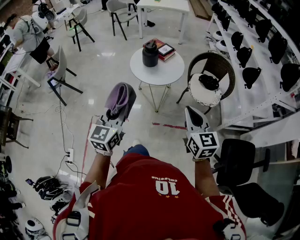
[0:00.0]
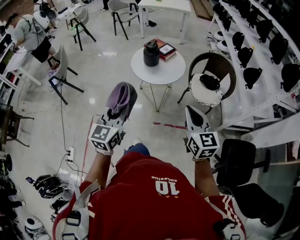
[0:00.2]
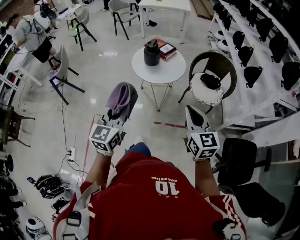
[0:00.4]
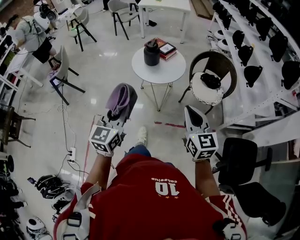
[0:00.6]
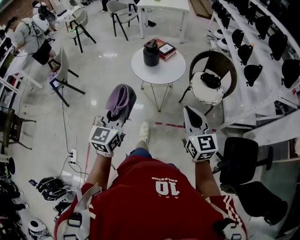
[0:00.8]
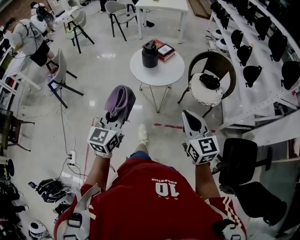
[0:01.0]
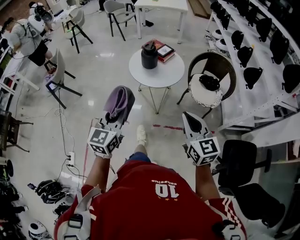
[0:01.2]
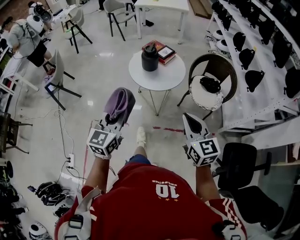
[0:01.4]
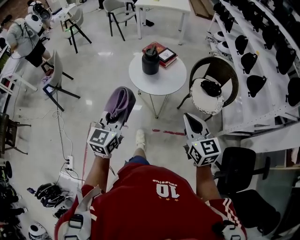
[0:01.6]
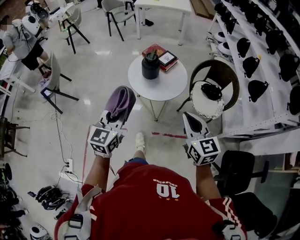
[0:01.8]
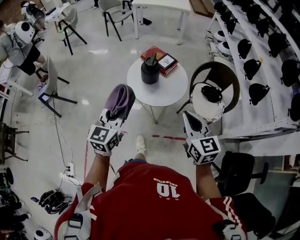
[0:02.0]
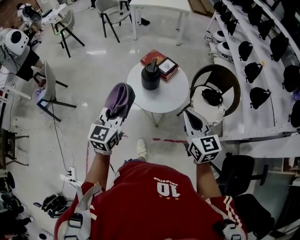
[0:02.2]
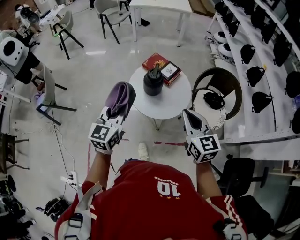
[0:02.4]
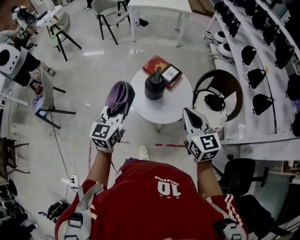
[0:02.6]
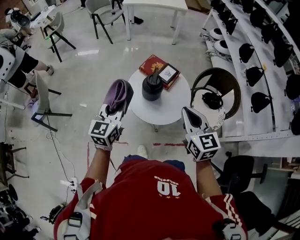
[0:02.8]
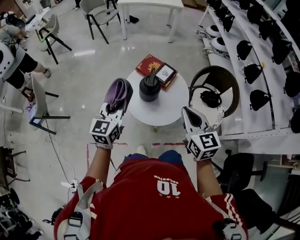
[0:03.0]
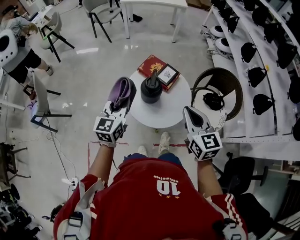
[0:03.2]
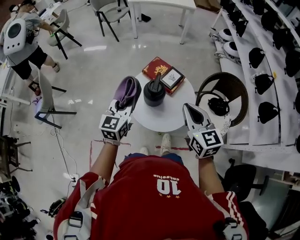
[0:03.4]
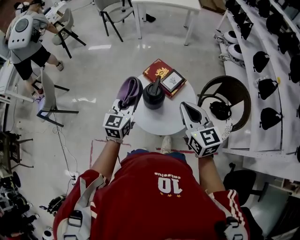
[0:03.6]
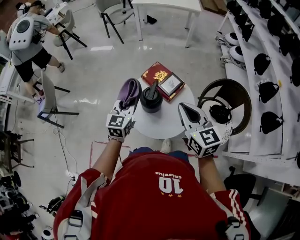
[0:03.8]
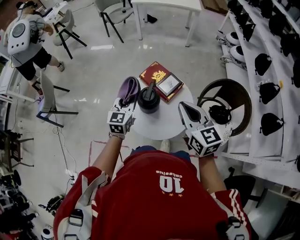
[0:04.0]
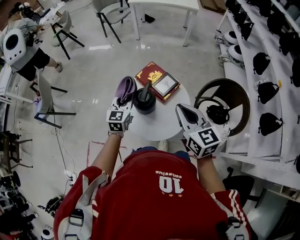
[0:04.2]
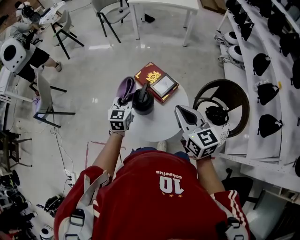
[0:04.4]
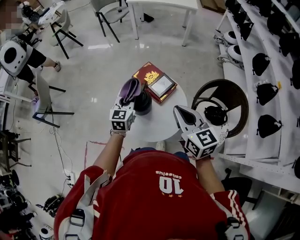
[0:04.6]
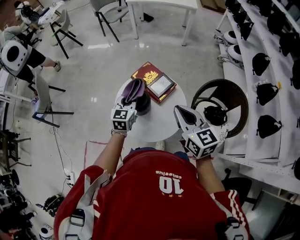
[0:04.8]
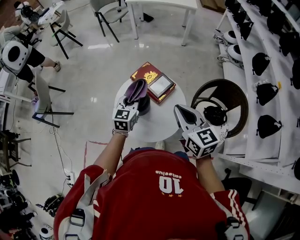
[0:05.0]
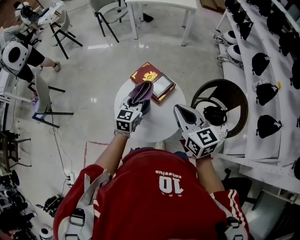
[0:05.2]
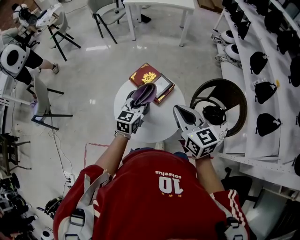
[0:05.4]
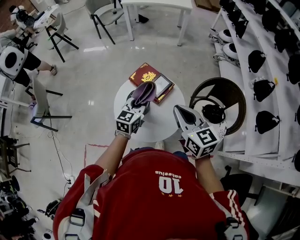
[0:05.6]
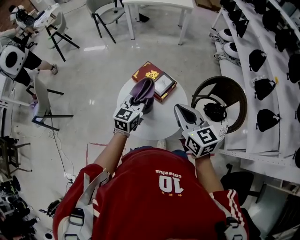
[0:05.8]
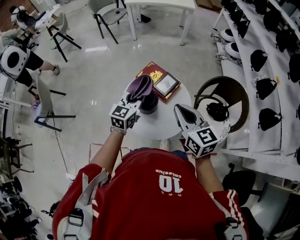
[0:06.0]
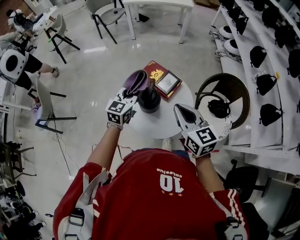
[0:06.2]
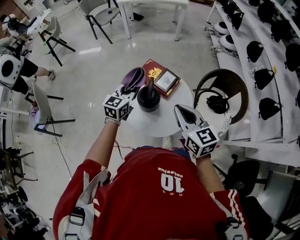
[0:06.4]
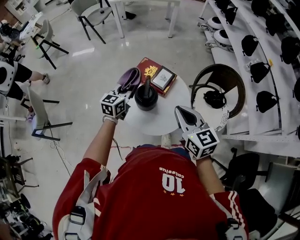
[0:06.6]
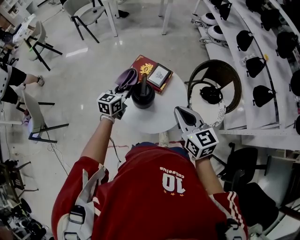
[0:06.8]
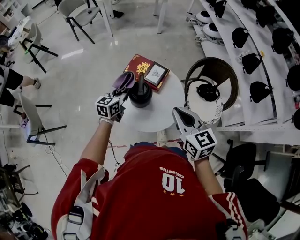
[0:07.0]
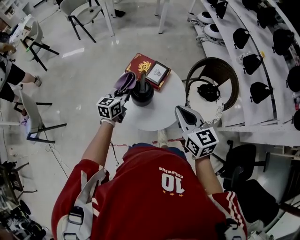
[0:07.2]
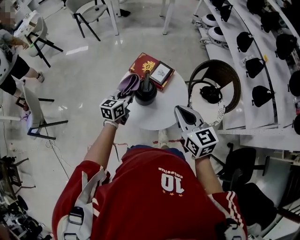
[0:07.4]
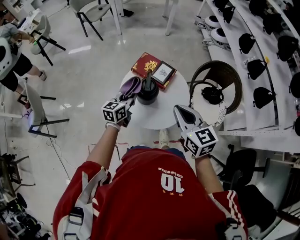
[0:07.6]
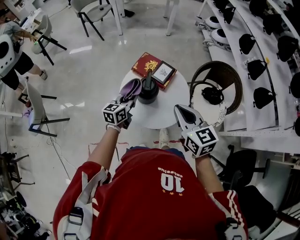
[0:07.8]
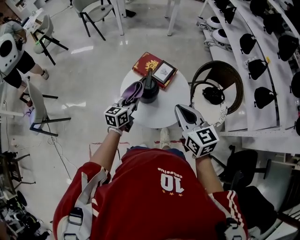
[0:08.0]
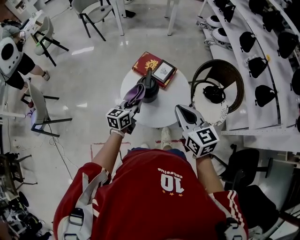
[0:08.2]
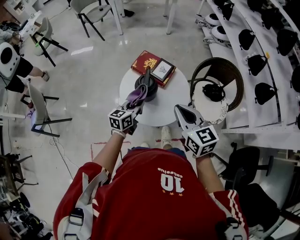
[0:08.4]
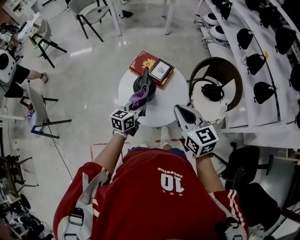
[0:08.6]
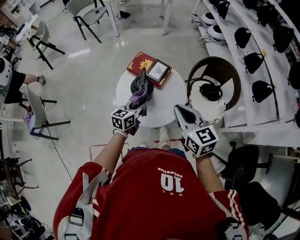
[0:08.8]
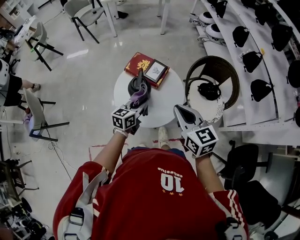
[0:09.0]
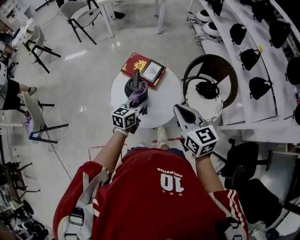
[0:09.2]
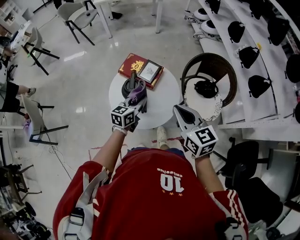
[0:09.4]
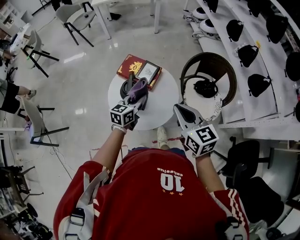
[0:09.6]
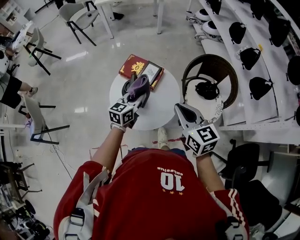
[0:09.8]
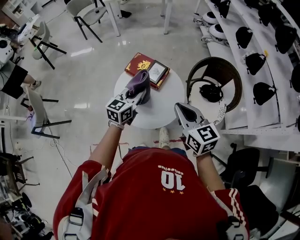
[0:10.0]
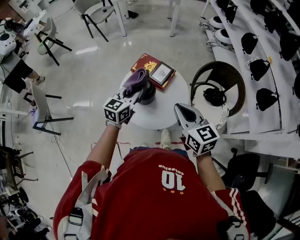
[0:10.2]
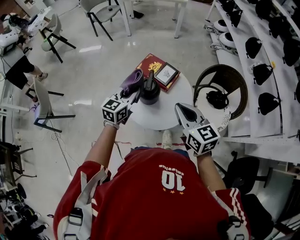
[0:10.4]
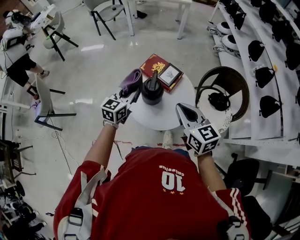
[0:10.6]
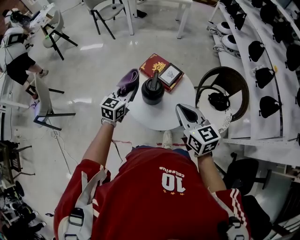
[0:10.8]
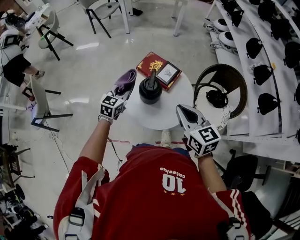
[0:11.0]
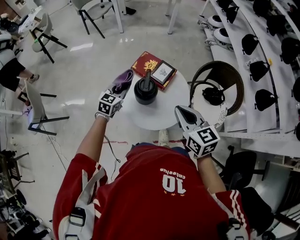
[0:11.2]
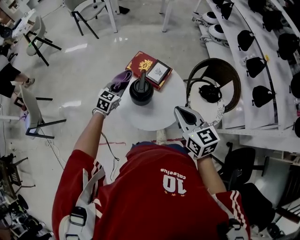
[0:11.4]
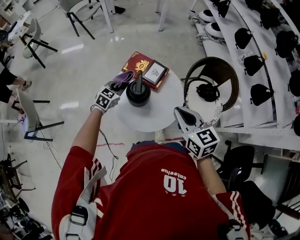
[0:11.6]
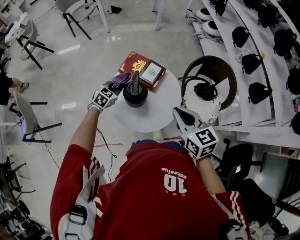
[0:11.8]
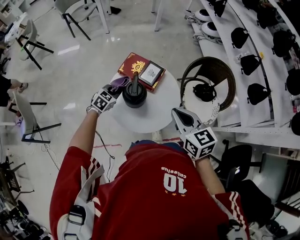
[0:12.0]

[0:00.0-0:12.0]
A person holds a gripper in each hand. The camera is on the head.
0:00.0 to 0:01.6: The grippers both shift forward by approximately 10 cm.
0:01.6 to 0:03.0: Both grippers travel together forward, about 30 cm.
0:03.0 to 0:04.4: The right gripper is displaced forward and to the right by about 15 cm. Meanwhile the left gripper travels forward, downward and to the right by approximately 20 cm.
0:04.4 to 0:06.0: The left gripper heads upward, covering about 5 cm.
0:06.0 to 0:07.6: The right gripper shifts about 5 cm backward. The left gripper shifts about 10 cm downward and to the left, and rotates some 20 degrees.
0:07.6 to 0:09.0: The left gripper moves to the right, some 10 cm.
0:09.0 to 0:10.4: The left gripper moves upward and to the left, roughly 10 cm.
0:10.4 to 0:12.0: The left gripper moves downward and forward, about 20 cm, and swivels about 40 degrees.

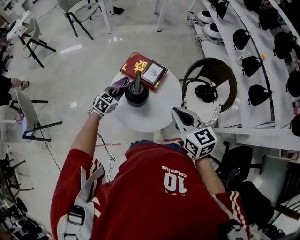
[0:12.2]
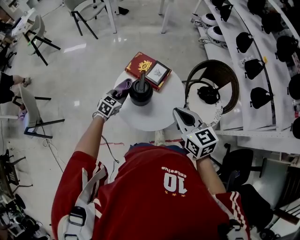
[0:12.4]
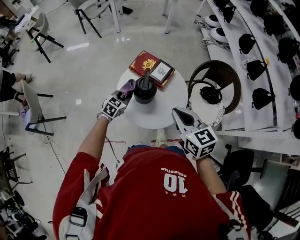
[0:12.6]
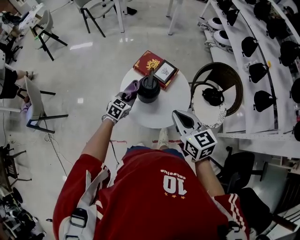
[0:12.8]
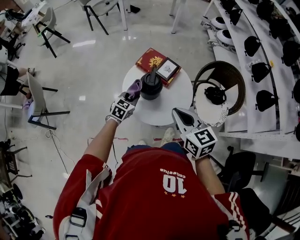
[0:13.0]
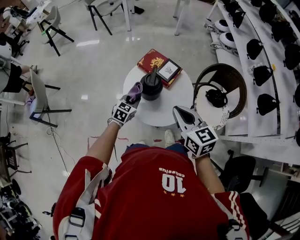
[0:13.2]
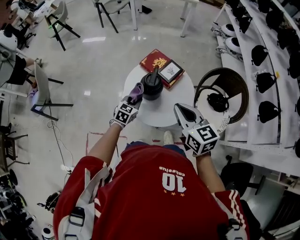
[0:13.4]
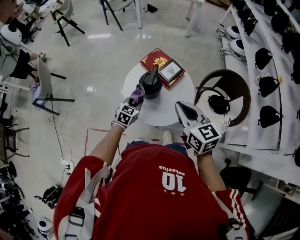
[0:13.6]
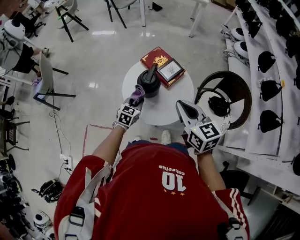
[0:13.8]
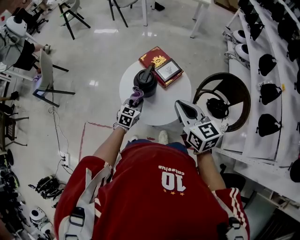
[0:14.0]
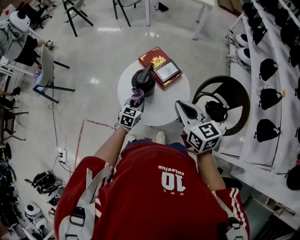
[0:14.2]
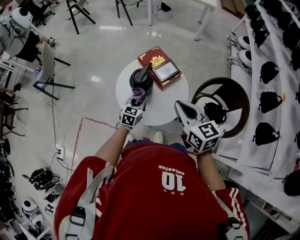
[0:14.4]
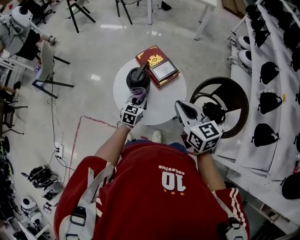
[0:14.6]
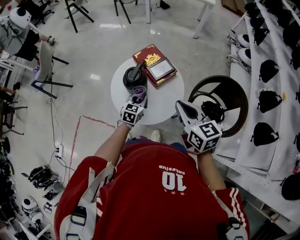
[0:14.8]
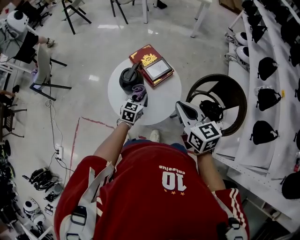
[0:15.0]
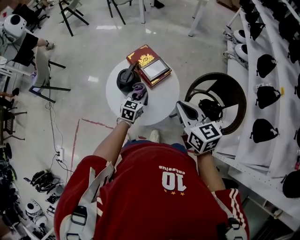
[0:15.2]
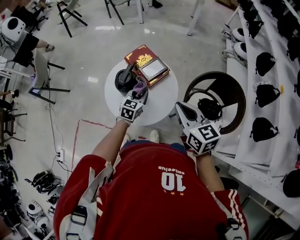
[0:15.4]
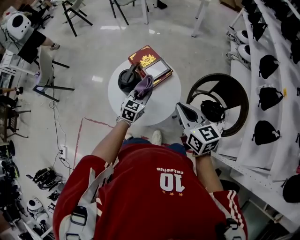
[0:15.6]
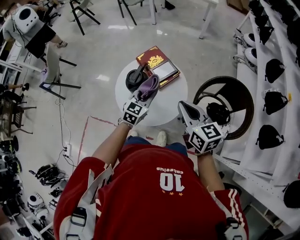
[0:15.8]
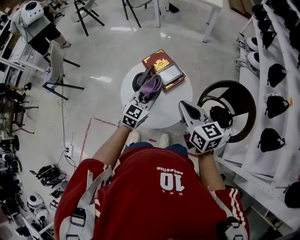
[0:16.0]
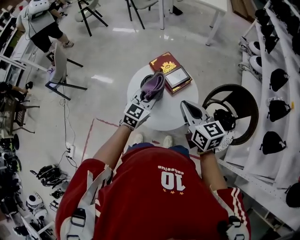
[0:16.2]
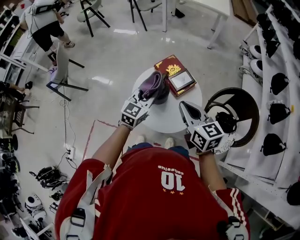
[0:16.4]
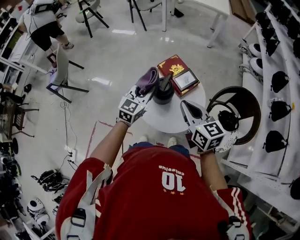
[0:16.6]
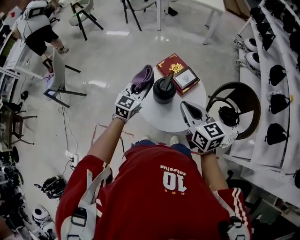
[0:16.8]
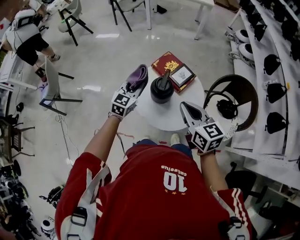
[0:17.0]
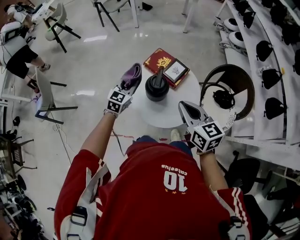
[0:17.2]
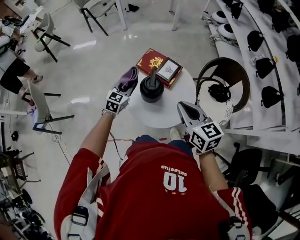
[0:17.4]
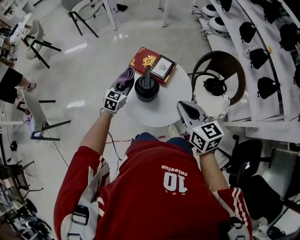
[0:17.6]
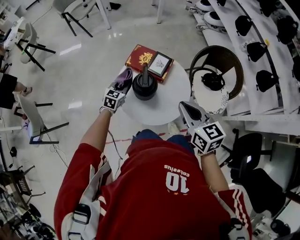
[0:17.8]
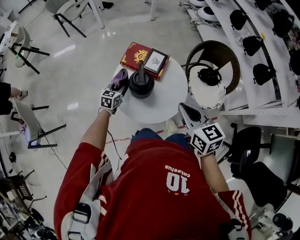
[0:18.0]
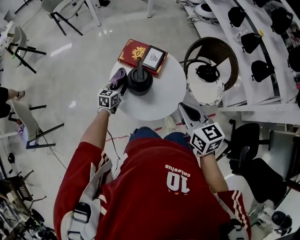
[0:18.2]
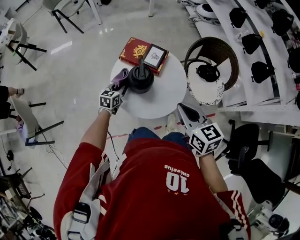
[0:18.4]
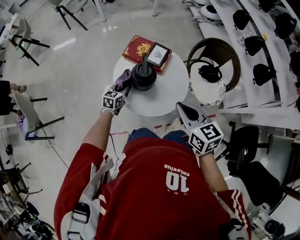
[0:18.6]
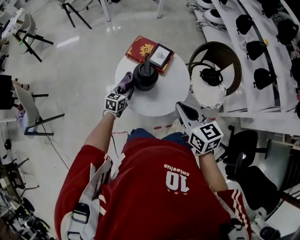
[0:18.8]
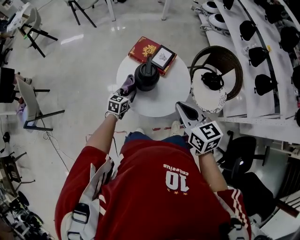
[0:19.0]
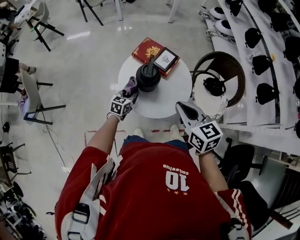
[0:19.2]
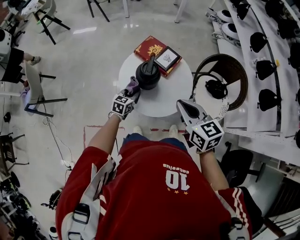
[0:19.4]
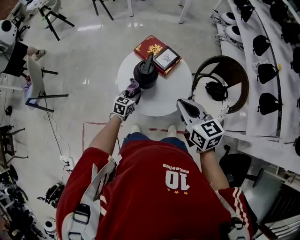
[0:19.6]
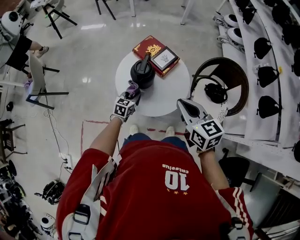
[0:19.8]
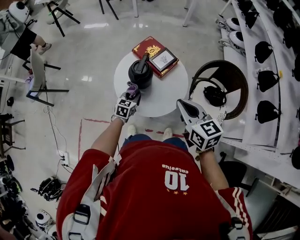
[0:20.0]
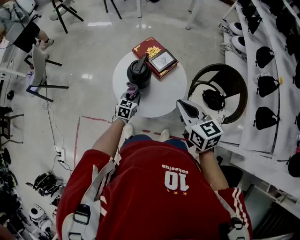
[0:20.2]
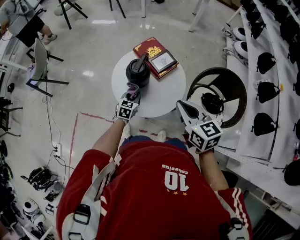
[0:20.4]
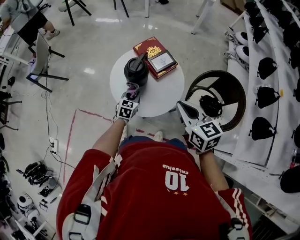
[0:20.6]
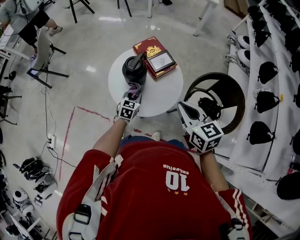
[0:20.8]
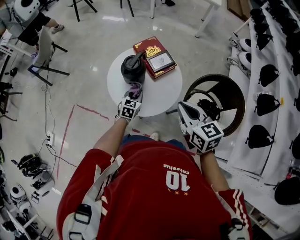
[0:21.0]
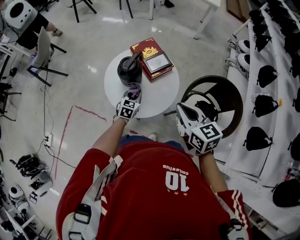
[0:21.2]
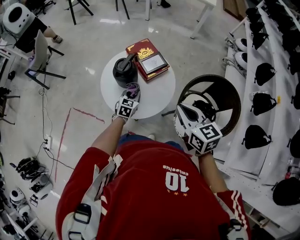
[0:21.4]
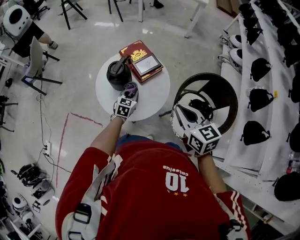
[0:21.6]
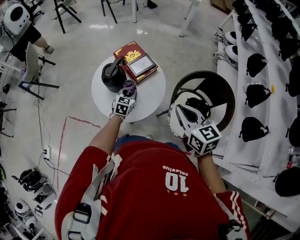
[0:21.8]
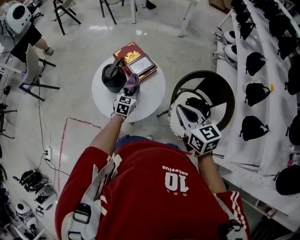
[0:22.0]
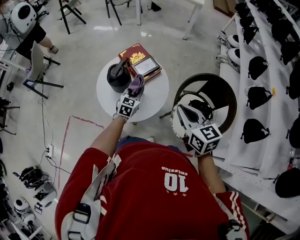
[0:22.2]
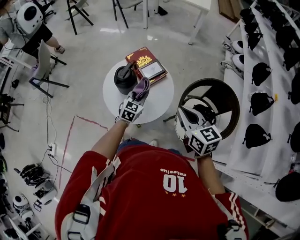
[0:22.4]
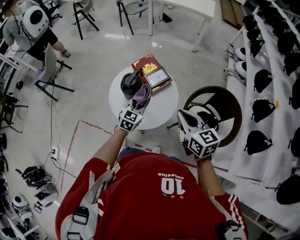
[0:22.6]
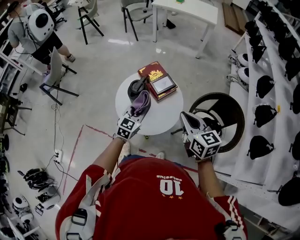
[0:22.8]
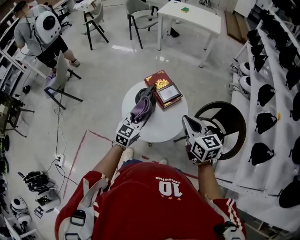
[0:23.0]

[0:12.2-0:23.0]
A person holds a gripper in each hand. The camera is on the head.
0:12.2 to 0:13.8: The left gripper heads backward and to the right, covering some 15 cm, and rotates roughly 30 degrees.
0:13.8 to 0:15.2: Both grippers travel together to the right, approximately 15 cm.
0:15.2 to 0:16.8: The right gripper heads to the left, covering approximately 15 cm; the left gripper travels to the left and upward by roughly 25 cm.
0:16.8 to 0:18.4: The right gripper shifts by roughly 10 cm, and changes its angle by approximately 30 degrees. The left gripper goes about 20 cm downward, and rotates approximately 30 degrees.
0:18.4 to 0:20.0: The right gripper travels to the right by some 10 cm, and changes its angle by some 20 degrees. Meanwhile the left gripper travels backward and to the right by roughly 15 cm.
0:20.0 to 0:21.4: The grippers both shift to the right by roughly 10 cm.
0:21.4 to 0:23.0: The left gripper shifts approximately 20 cm upward. The right gripper moves upward and to the left, approximately 10 cm.

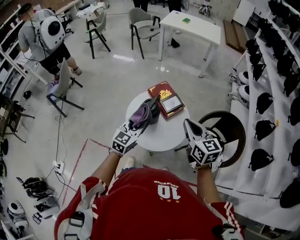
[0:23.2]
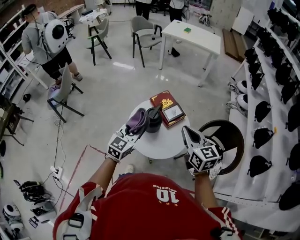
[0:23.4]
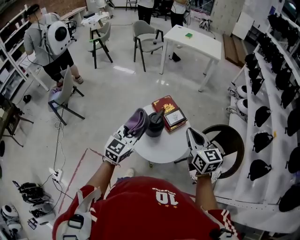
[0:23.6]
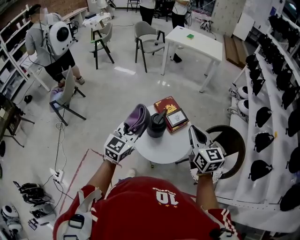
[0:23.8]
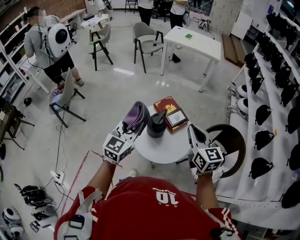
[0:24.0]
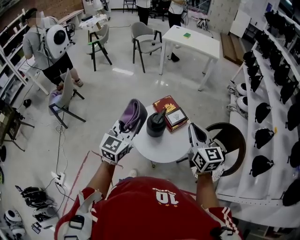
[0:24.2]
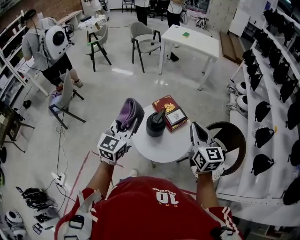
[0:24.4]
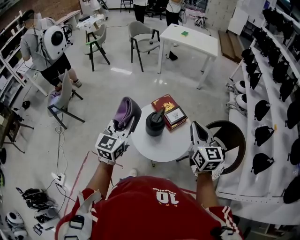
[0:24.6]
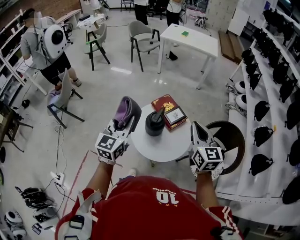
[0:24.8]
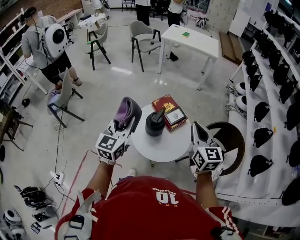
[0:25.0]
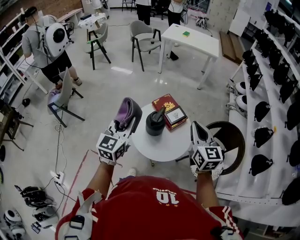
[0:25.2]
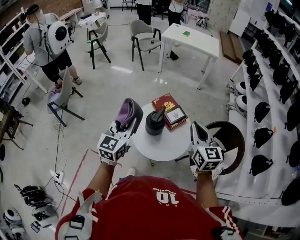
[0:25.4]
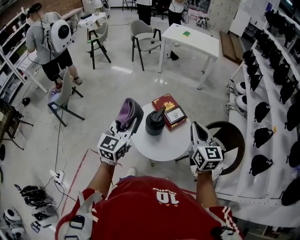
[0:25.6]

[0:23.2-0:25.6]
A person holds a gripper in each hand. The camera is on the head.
0:23.2 to 0:24.4: The left gripper travels upward and to the left by about 20 cm. The right gripper shifts some 5 cm upward.
0:24.4 to 0:25.6: The two grippers keep their place.
